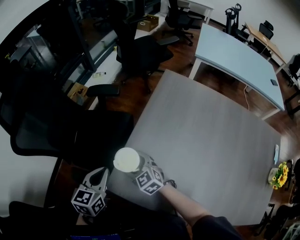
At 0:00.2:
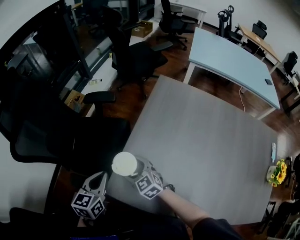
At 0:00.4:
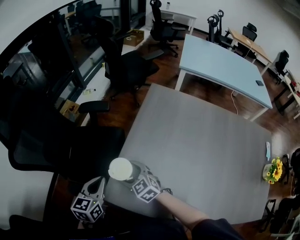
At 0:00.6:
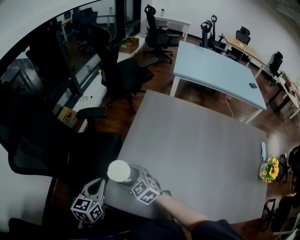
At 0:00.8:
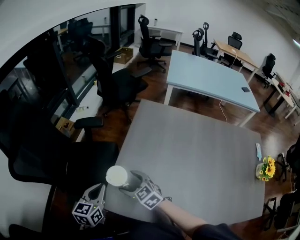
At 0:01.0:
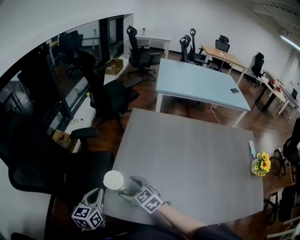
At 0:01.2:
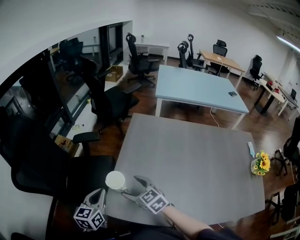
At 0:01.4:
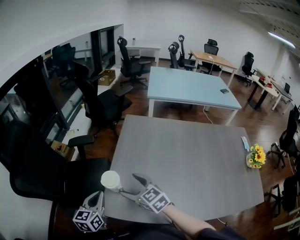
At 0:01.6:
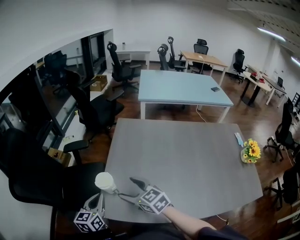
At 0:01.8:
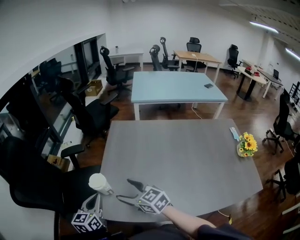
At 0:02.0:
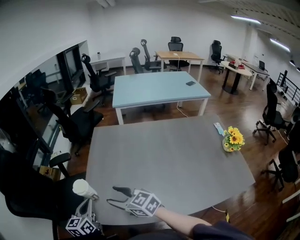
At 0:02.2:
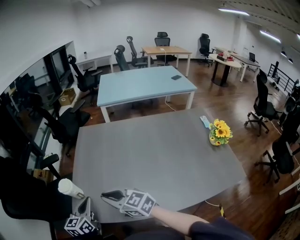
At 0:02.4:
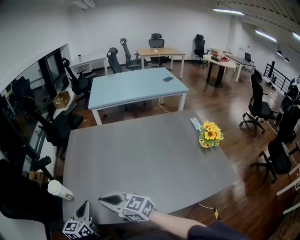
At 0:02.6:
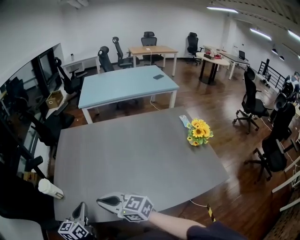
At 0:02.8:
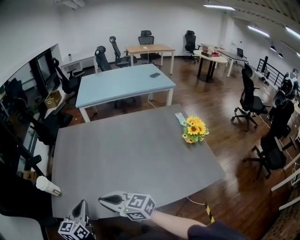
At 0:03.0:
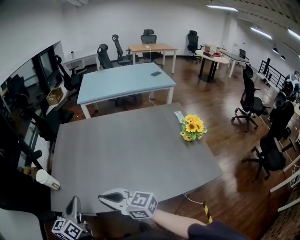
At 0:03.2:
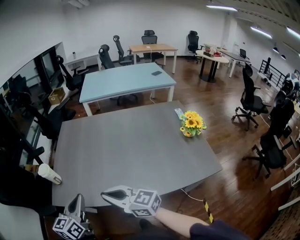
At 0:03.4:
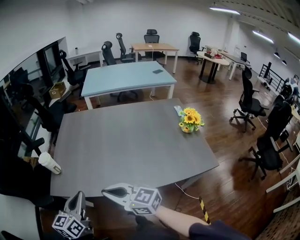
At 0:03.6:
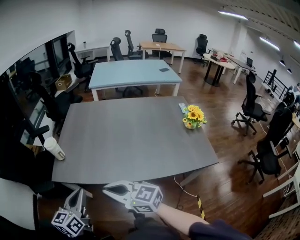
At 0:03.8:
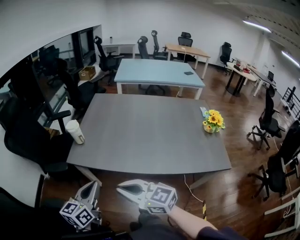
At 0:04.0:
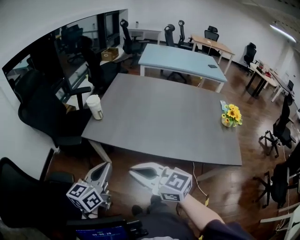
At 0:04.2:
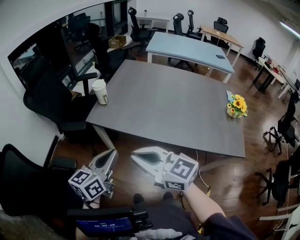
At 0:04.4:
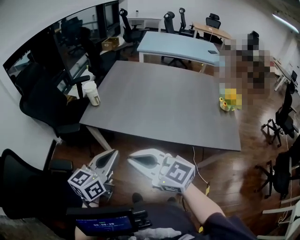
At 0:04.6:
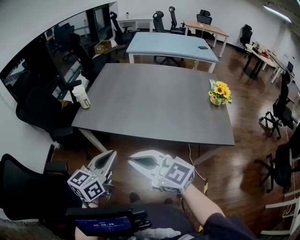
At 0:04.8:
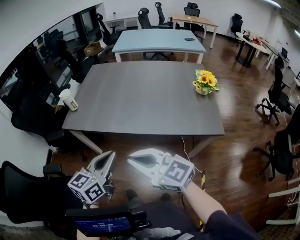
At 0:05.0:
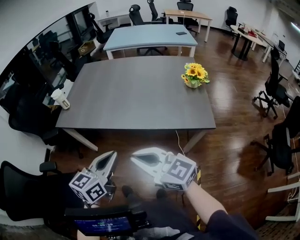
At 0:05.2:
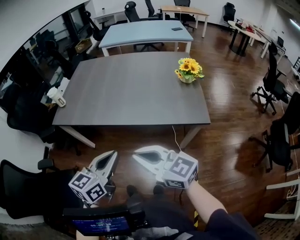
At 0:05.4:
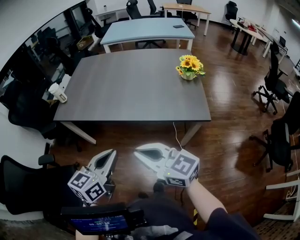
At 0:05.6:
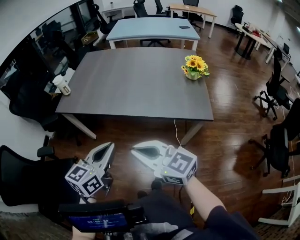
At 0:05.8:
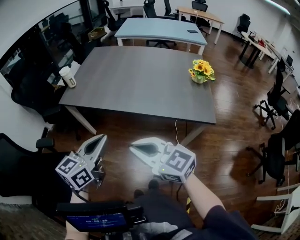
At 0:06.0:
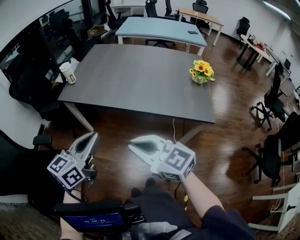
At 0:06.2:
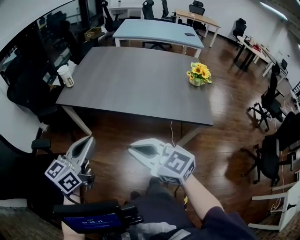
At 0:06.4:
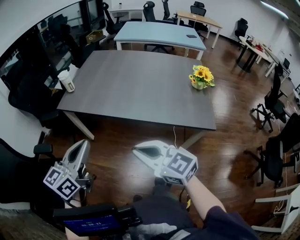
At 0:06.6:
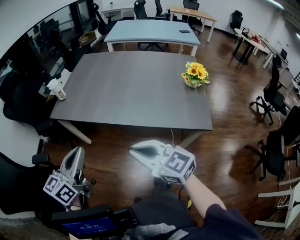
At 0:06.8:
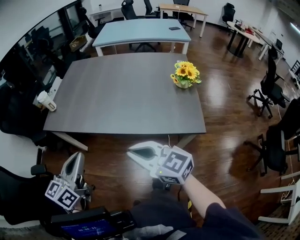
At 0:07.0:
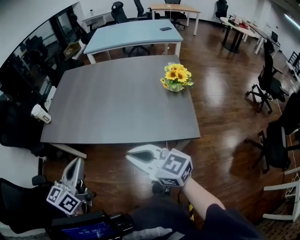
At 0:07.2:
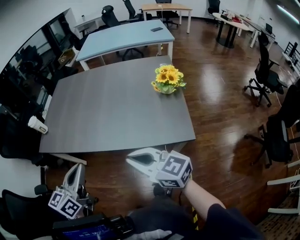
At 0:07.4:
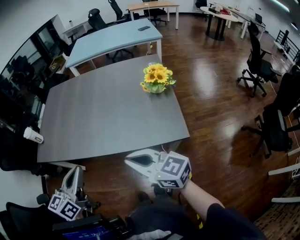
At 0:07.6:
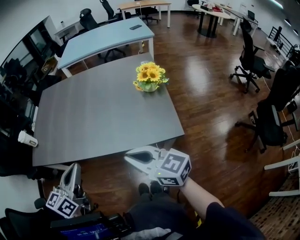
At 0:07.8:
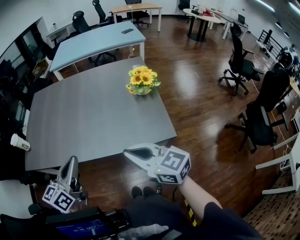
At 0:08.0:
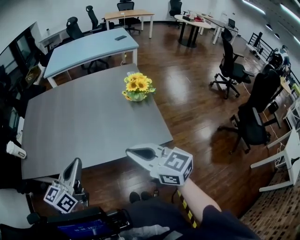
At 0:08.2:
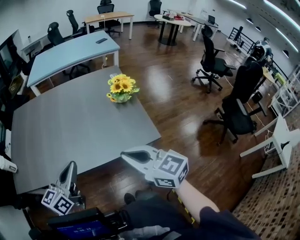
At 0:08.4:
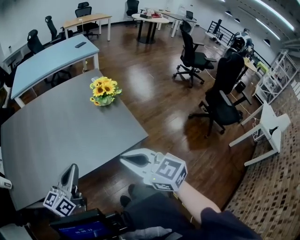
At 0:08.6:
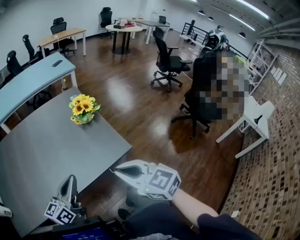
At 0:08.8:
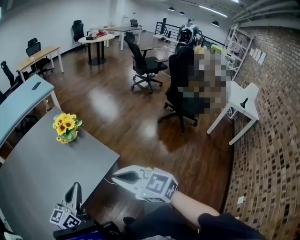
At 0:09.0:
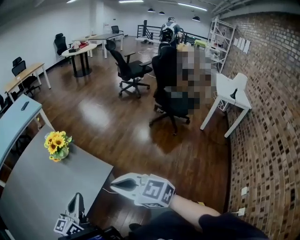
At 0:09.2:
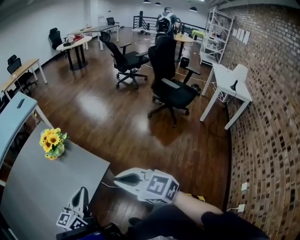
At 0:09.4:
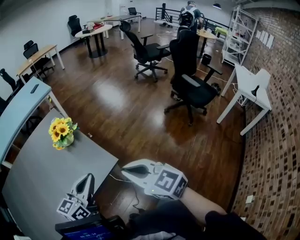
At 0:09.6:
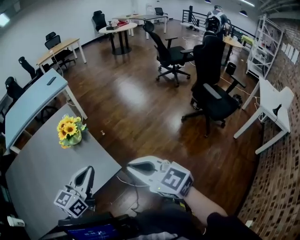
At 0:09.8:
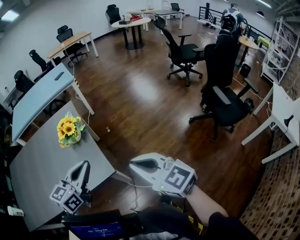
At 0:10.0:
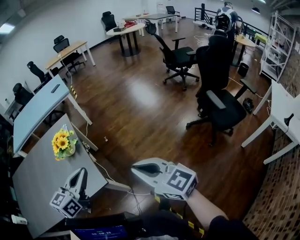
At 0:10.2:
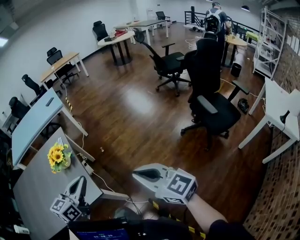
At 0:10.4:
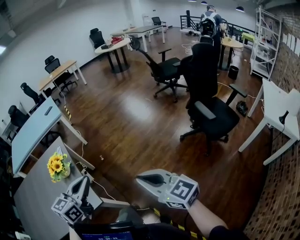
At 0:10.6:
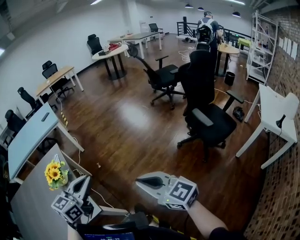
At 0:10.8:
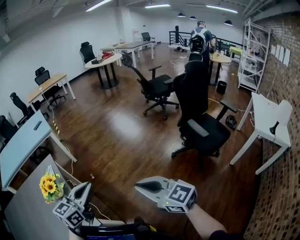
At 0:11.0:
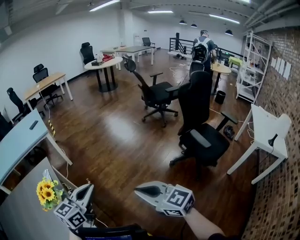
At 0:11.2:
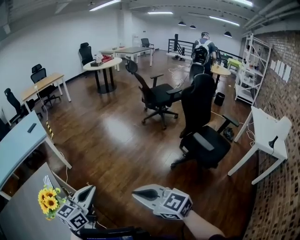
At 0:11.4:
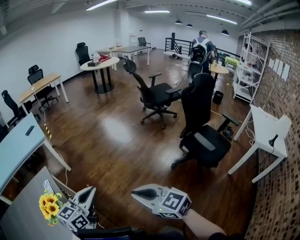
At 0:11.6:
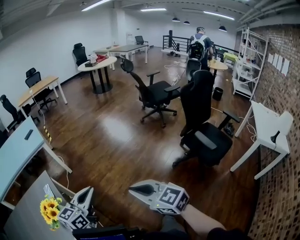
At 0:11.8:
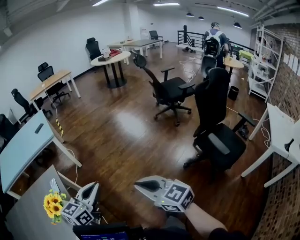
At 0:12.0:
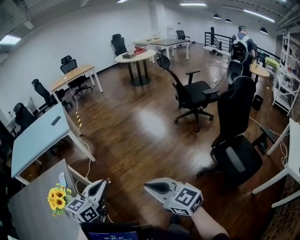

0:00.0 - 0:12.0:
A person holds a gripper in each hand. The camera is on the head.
0:00.0 - 0:01.6: The right gripper moves upward, to the right and backward, approximately 20 cm, and changes its angle by some 20 degrees. Meanwhile the left gripper goes approximately 5 cm to the right.
0:01.6 - 0:03.0: The right gripper shifts about 35 cm backward and to the right, changes its angle by about 20 degrees, and closes its fingers, while the left gripper travels to the right and backward by some 30 cm.
0:03.0 - 0:04.4: The right gripper is displaced backward and to the left by roughly 25 cm. The left gripper is displaced backward by about 25 cm.
0:04.4 - 0:06.0: The left gripper shifts about 20 cm backward and to the right; the right gripper goes about 20 cm to the right and backward.
0:06.0 - 0:07.6: The right gripper heads to the right, covering approximately 30 cm, and rotates about 20 degrees; the left gripper heads to the right and forward, covering roughly 25 cm.
0:07.6 - 0:09.0: The left gripper ends up some 25 cm from where it was, and turns by about 50 degrees, while the right gripper changes place by approximately 15 cm, and rotates about 50 degrees.
0:09.0 - 0:10.4: The left gripper goes approximately 40 cm to the right and forward; the right gripper shifts some 40 cm to the right.
0:10.4 - 0:12.0: The grippers both shift forward by some 30 cm.

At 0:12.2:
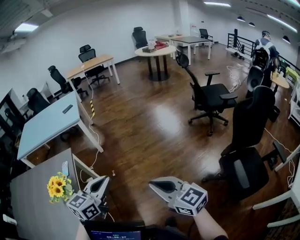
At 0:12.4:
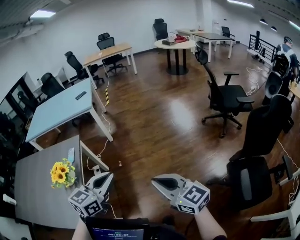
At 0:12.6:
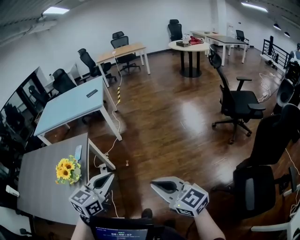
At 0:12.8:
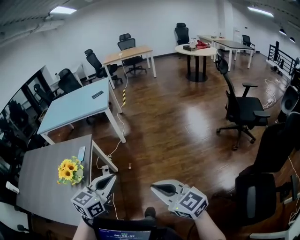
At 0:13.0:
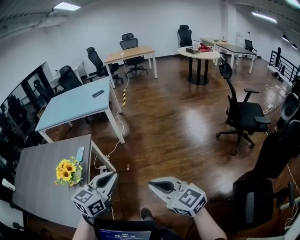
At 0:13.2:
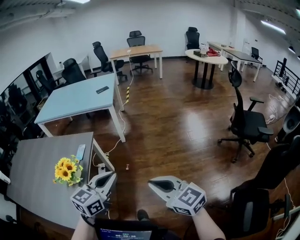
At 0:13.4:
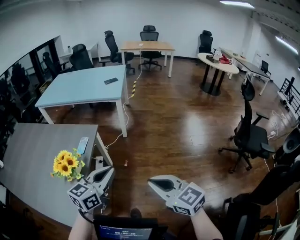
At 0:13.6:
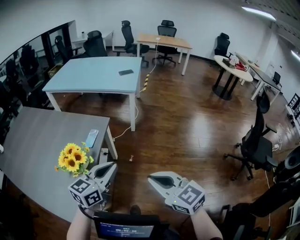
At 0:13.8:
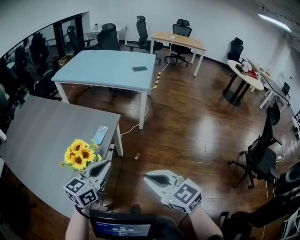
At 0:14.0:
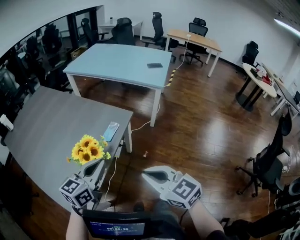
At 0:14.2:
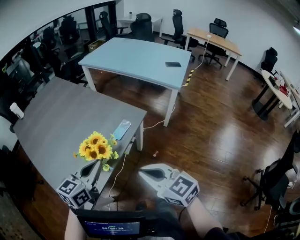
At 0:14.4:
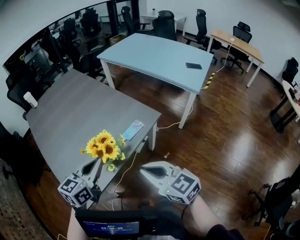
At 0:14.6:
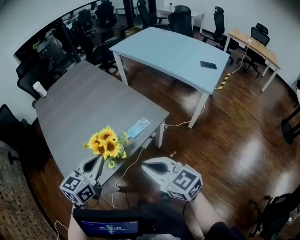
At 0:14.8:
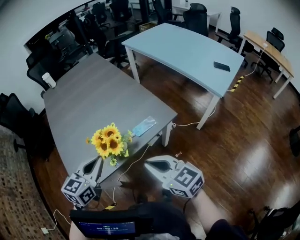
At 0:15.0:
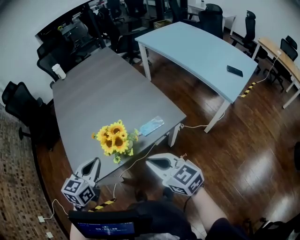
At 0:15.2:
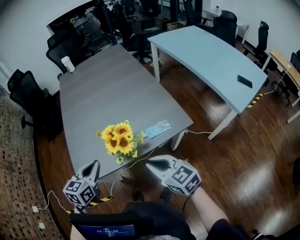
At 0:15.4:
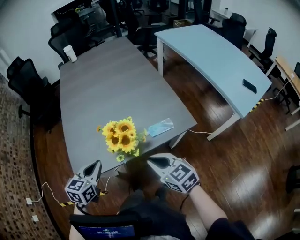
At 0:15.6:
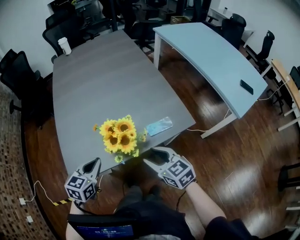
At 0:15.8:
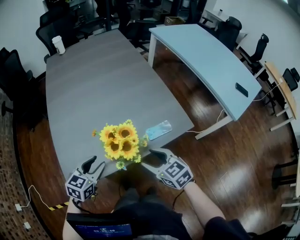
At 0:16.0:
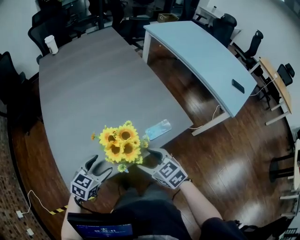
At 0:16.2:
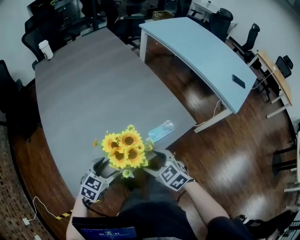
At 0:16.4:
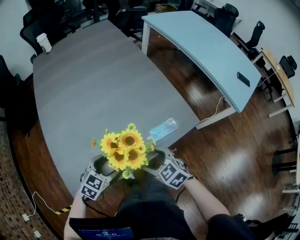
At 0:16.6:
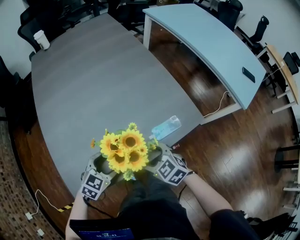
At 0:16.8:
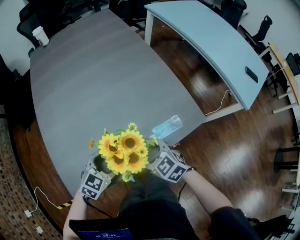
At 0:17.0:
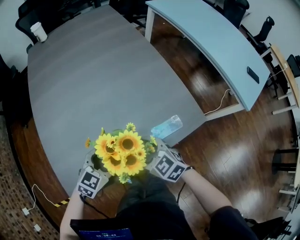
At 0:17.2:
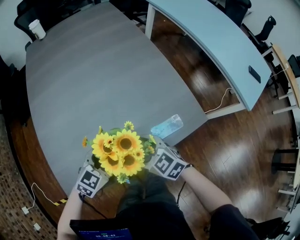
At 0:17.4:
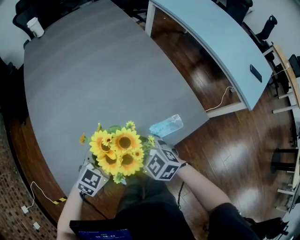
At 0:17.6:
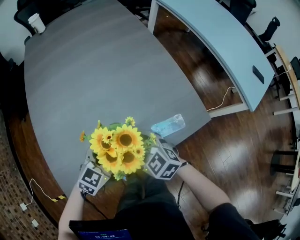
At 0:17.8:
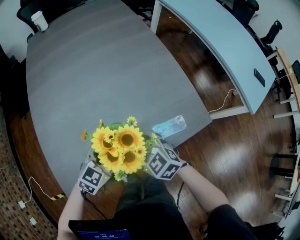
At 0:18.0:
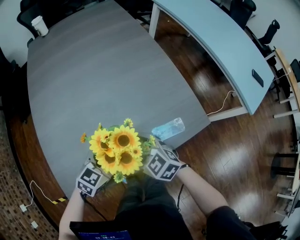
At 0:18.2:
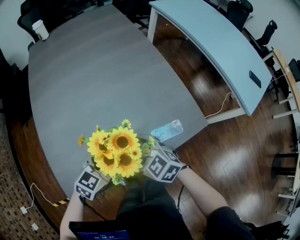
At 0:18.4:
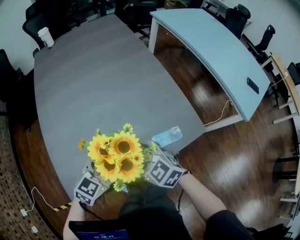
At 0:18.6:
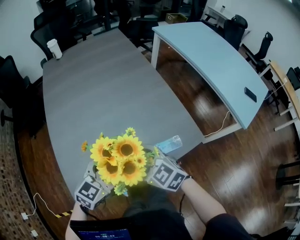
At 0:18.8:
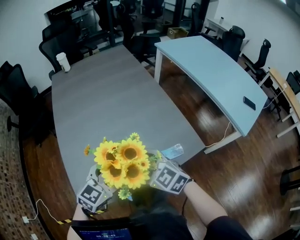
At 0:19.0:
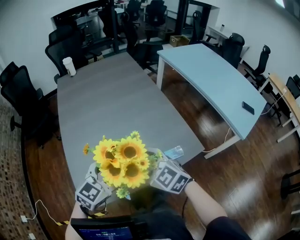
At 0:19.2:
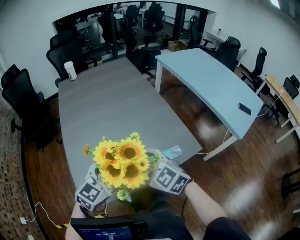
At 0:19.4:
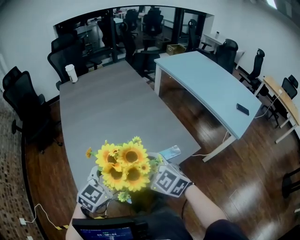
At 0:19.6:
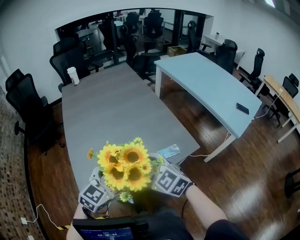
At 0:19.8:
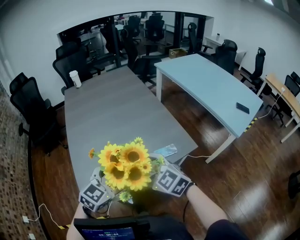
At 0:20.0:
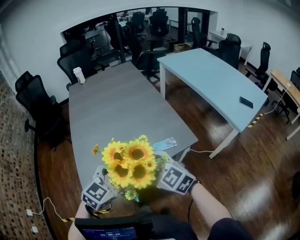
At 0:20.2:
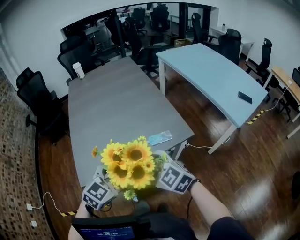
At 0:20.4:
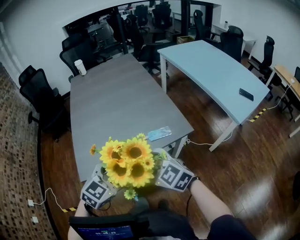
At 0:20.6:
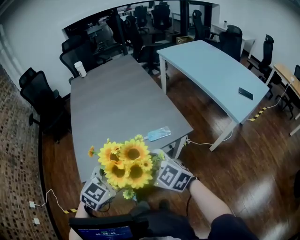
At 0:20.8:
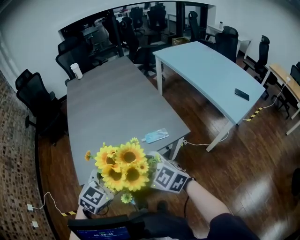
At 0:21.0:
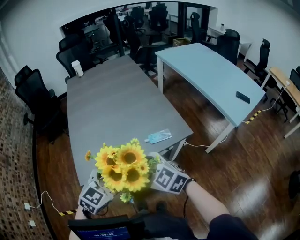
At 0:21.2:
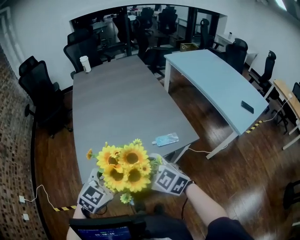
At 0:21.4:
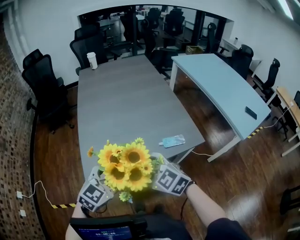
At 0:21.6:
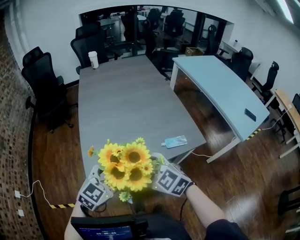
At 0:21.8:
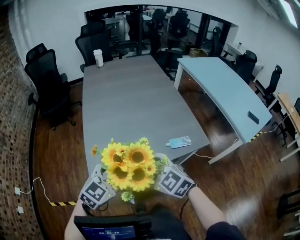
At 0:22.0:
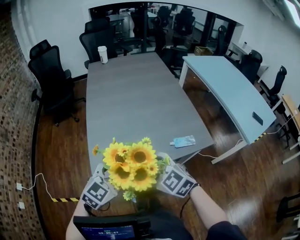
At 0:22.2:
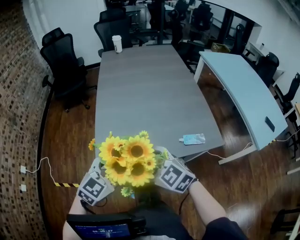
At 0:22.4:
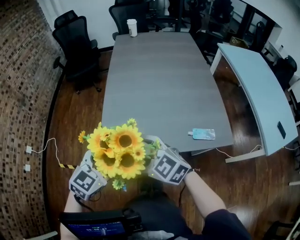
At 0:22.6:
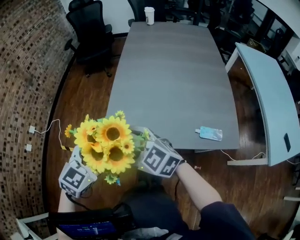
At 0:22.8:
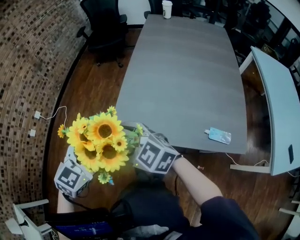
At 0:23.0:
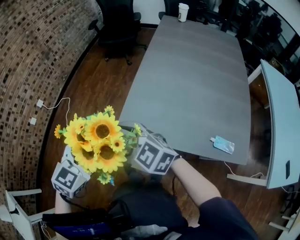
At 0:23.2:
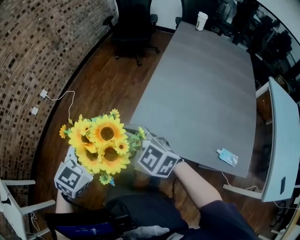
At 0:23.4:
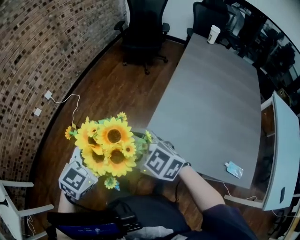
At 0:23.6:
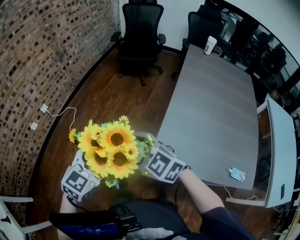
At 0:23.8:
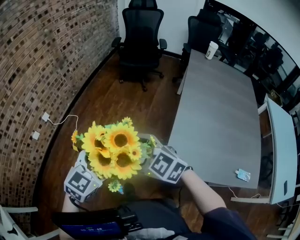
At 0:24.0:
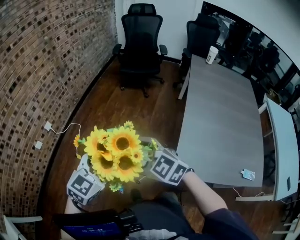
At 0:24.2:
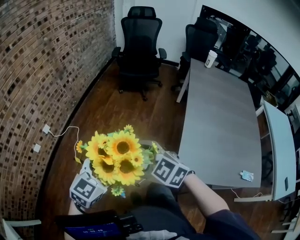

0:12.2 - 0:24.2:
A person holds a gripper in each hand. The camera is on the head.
0:12.2 - 0:13.8: The right gripper changes place by approximately 30 cm, and rotates some 40 degrees, while the left gripper shifts by about 30 cm, and swivels some 40 degrees.
0:13.8 - 0:15.2: The right gripper shifts by some 20 cm, and swivels about 50 degrees; the left gripper moves about 20 cm, and swivels some 70 degrees.
0:15.2 - 0:16.6: The two grippers go some 20 cm downward and forward. The left gripper changes its angle by about 40 degrees, and opens its fingers. The right gripper changes its angle by roughly 30 degrees, and opens.
0:16.6 - 0:18.2: The left gripper moves approximately 5 cm.
0:18.2 - 0:19.8: Both grippers move upward and backward, approximately 20 cm.
0:19.8 - 0:21.2: The two grippers go about 10 cm backward.
0:21.2 - 0:22.6: The left gripper shifts by about 20 cm, and changes its angle by roughly 30 degrees; the right gripper changes place by about 20 cm, and changes its angle by about 30 degrees.
0:22.6 - 0:24.2: The grippers both shift to the left and forward by roughly 40 cm.
